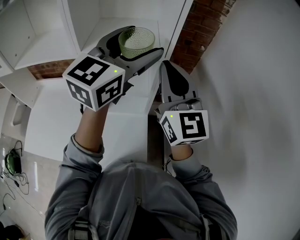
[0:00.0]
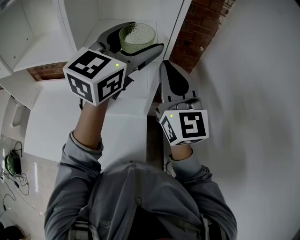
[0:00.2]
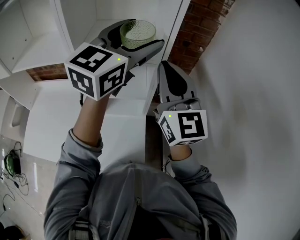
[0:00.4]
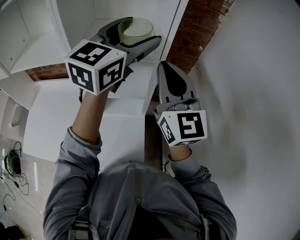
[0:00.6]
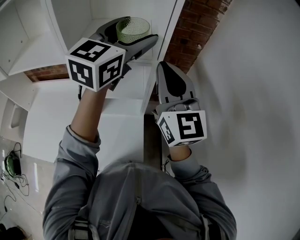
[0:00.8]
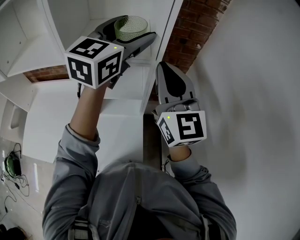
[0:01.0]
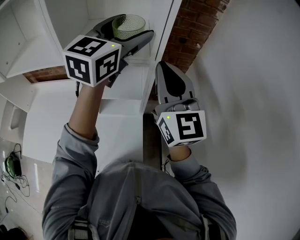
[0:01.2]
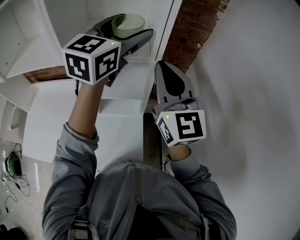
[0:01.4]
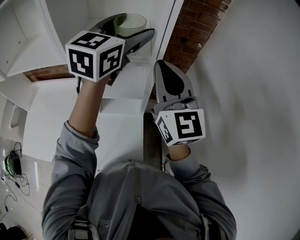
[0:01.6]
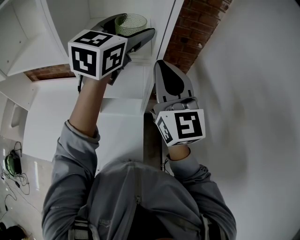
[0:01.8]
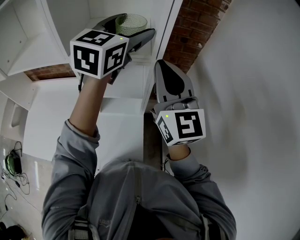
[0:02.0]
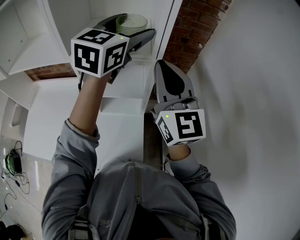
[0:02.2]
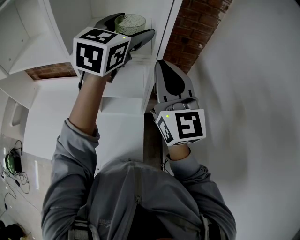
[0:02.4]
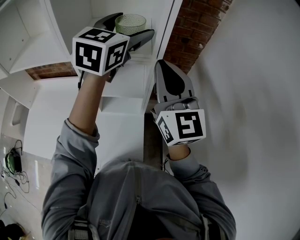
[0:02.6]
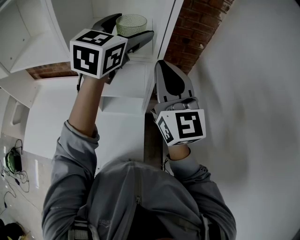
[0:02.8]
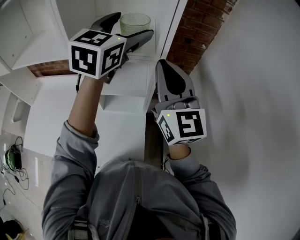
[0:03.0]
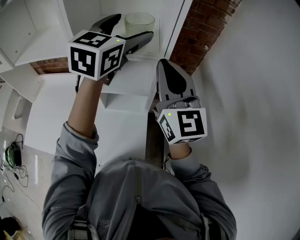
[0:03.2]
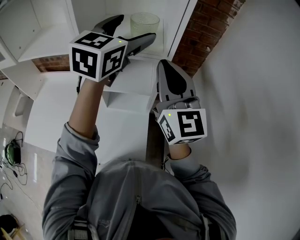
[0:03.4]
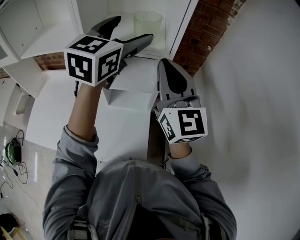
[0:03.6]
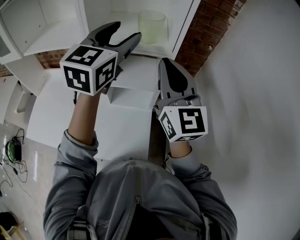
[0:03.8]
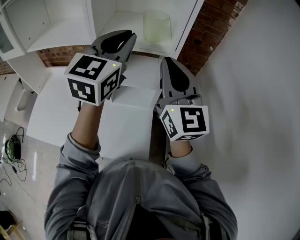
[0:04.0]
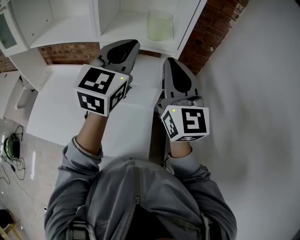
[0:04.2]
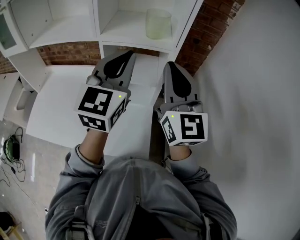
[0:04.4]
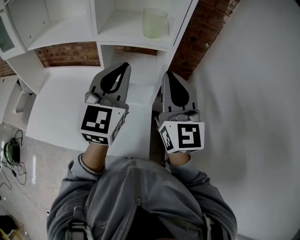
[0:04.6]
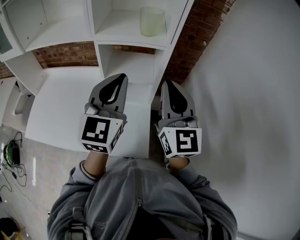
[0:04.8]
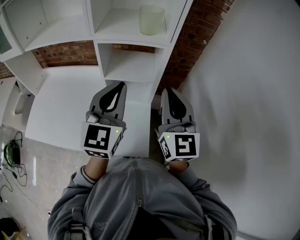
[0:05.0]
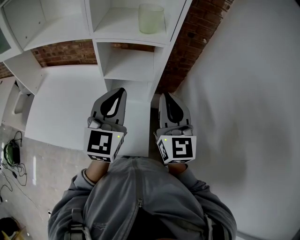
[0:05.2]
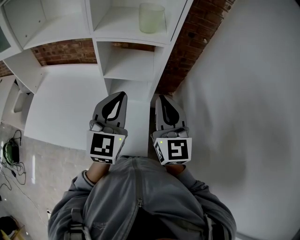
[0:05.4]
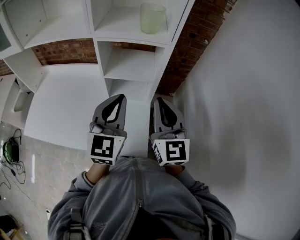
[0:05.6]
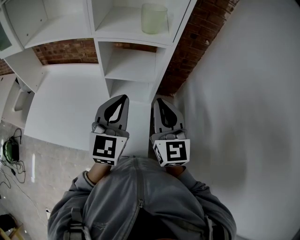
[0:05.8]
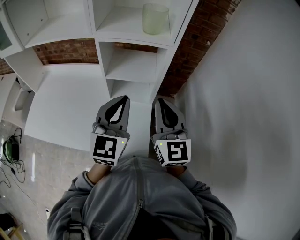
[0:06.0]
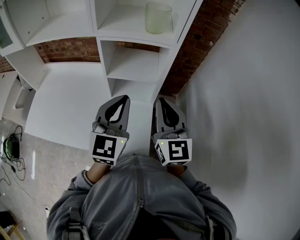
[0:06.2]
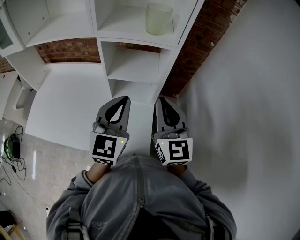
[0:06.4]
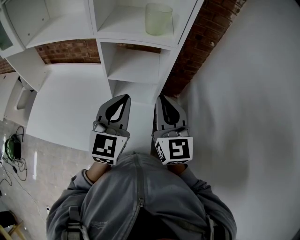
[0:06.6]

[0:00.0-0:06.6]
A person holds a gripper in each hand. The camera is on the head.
0:00.0 to 0:01.6: The left gripper shifts some 10 cm forward.
0:01.6 to 0:03.2: The grippers move only a little.
0:03.2 to 0:05.0: The right gripper is displaced backward and downward by approximately 15 cm; the left gripper travels backward and downward by roughly 25 cm, and closes its fingers.
0:05.0 to 0:06.6: The left gripper is displaced downward by roughly 5 cm. Meanwhile the right gripper moves about 5 cm.

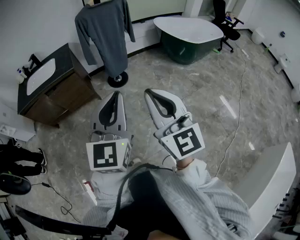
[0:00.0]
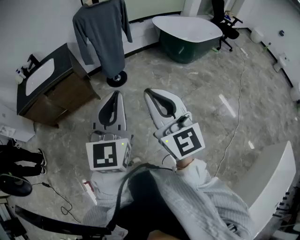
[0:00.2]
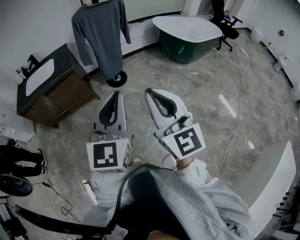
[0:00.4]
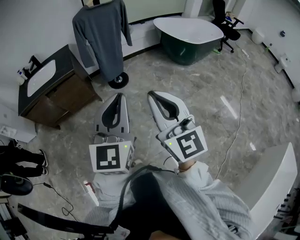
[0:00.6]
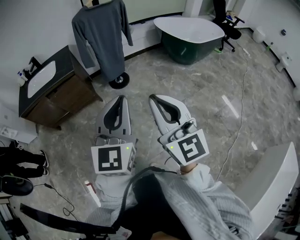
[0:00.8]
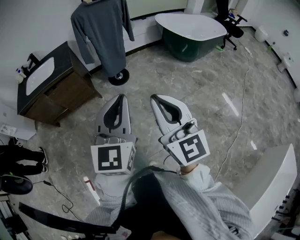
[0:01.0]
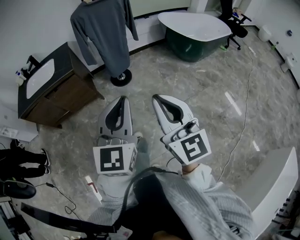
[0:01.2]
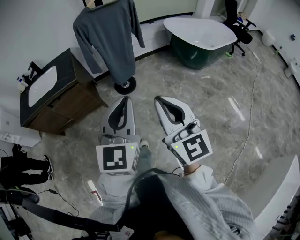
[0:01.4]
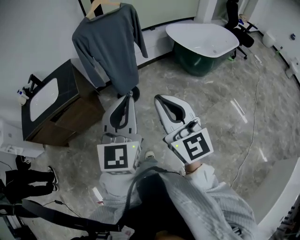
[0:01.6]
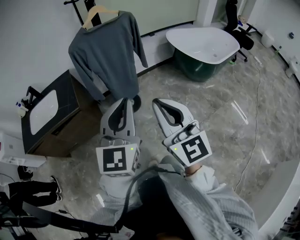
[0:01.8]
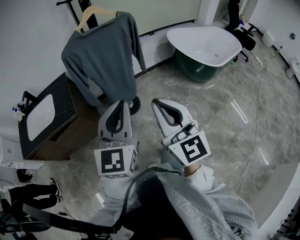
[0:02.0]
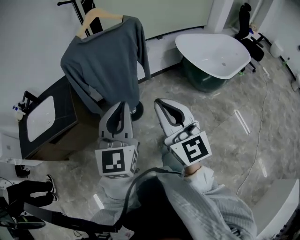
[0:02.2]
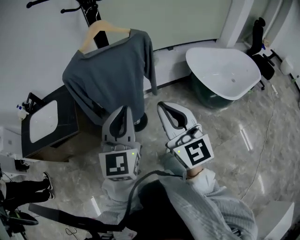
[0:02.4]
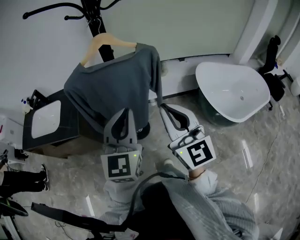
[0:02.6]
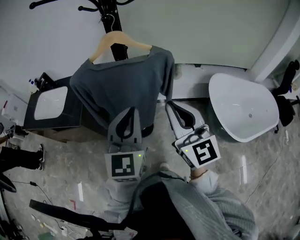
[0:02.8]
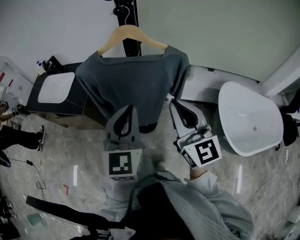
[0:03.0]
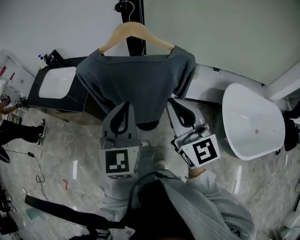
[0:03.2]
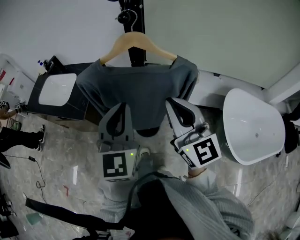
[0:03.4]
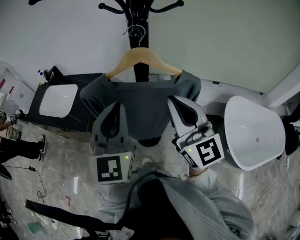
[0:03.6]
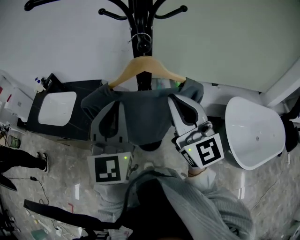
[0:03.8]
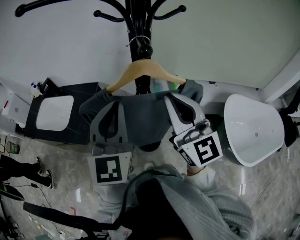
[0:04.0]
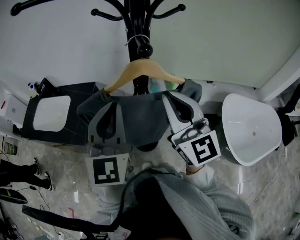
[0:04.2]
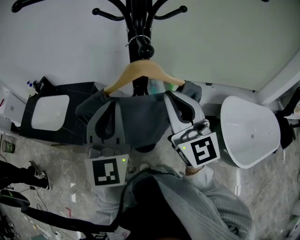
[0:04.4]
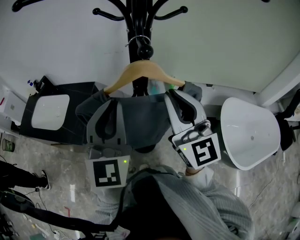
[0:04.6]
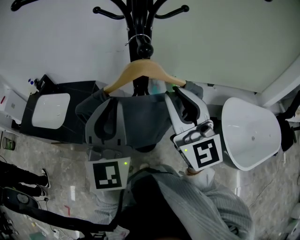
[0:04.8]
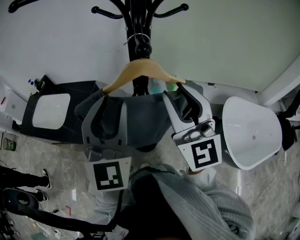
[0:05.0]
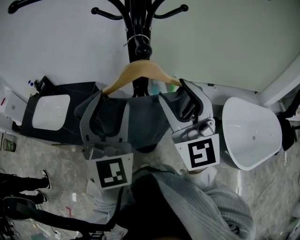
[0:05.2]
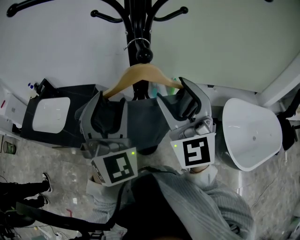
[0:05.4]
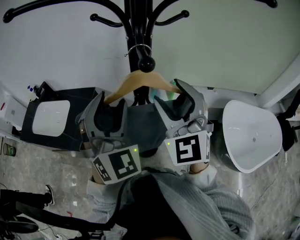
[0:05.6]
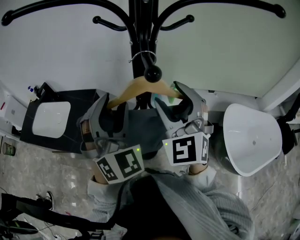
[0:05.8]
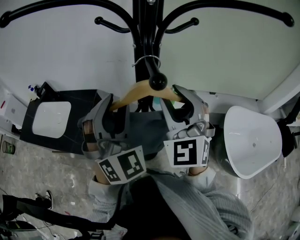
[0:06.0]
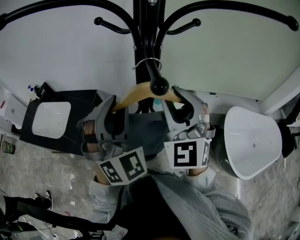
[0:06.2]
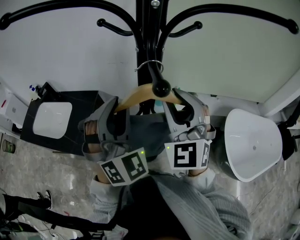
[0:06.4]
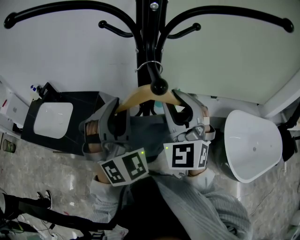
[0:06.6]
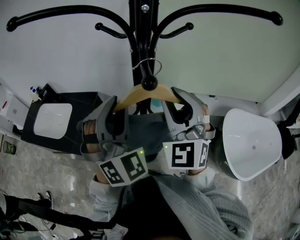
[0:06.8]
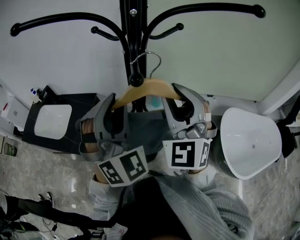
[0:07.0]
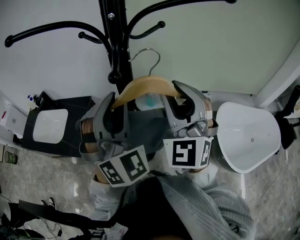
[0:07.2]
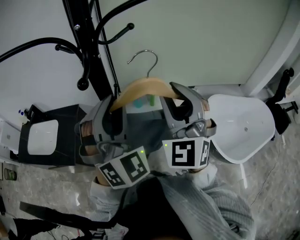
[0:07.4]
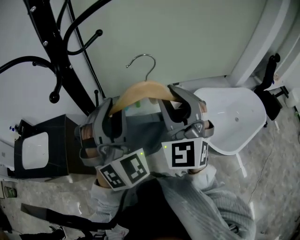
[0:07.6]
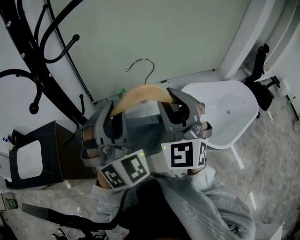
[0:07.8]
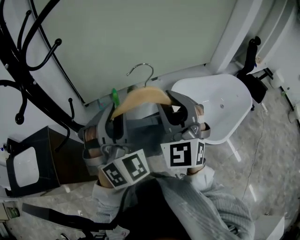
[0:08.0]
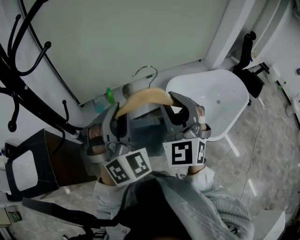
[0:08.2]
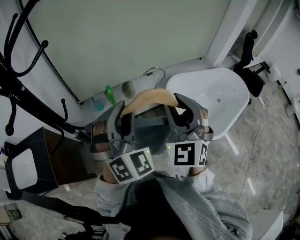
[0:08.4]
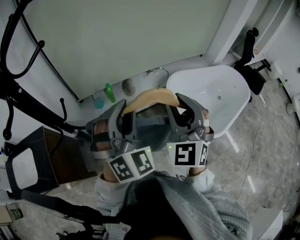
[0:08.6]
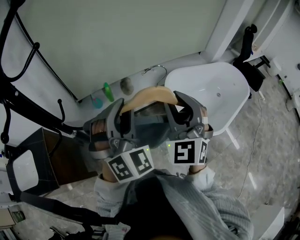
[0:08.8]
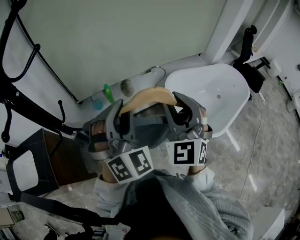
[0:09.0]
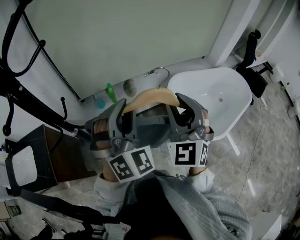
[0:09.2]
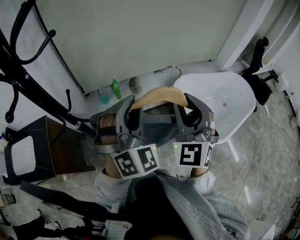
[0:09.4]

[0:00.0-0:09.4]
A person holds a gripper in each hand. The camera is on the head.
0:00.0 to 0:01.6: Both grippers move forward, approximately 30 cm.
0:01.6 to 0:03.2: The two grippers travel together, about 60 cm. The right gripper turns by about 30 degrees, while the left gripper changes its angle by roughly 40 degrees.
0:03.2 to 0:04.8: The grippers both shift forward and upward by some 15 cm.
0:04.8 to 0:06.2: The two grippers go about 10 cm forward. The right gripper rotates approximately 30 degrees, and opens, then closes again; the left gripper swivels approximately 40 degrees, and opens its fingers.
0:06.2 to 0:07.8: The right gripper is displaced to the right and backward by roughly 25 cm, and rotates roughly 20 degrees. Meanwhile the left gripper moves to the right, some 25 cm.
0:07.8 to 0:09.4: The two grippers go approximately 15 cm to the right and downward.

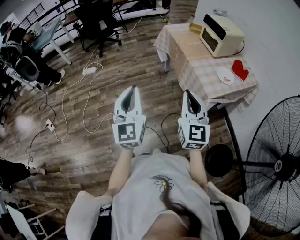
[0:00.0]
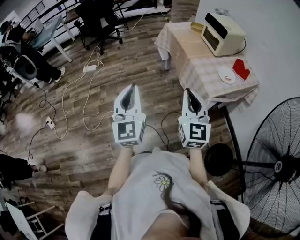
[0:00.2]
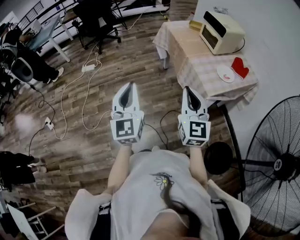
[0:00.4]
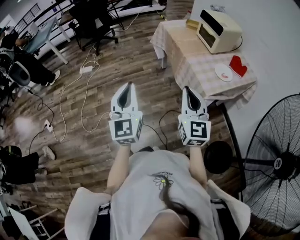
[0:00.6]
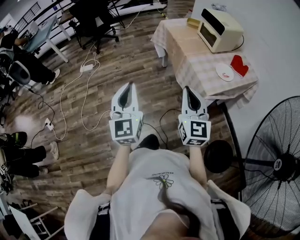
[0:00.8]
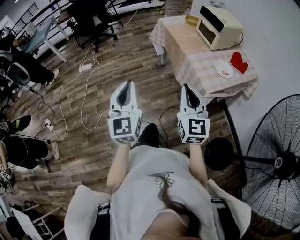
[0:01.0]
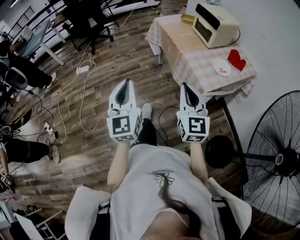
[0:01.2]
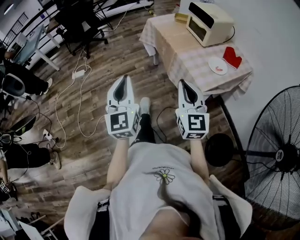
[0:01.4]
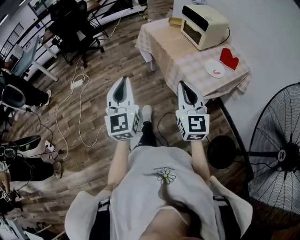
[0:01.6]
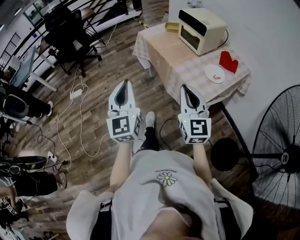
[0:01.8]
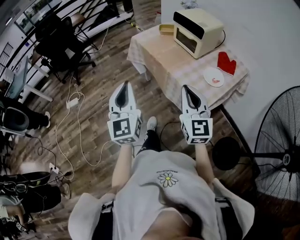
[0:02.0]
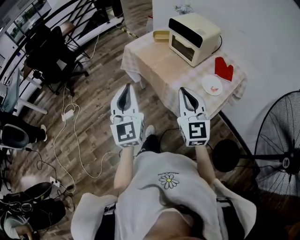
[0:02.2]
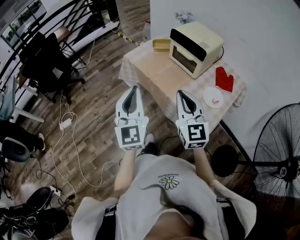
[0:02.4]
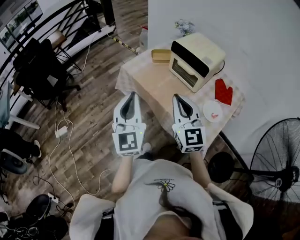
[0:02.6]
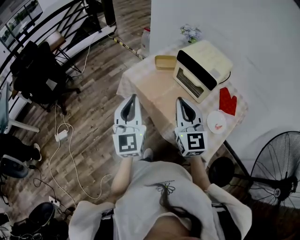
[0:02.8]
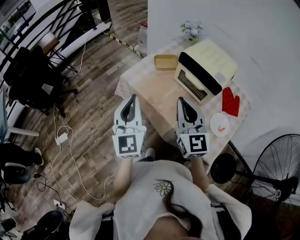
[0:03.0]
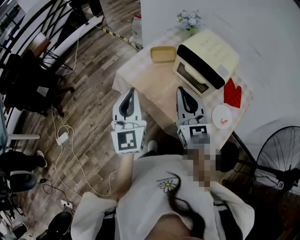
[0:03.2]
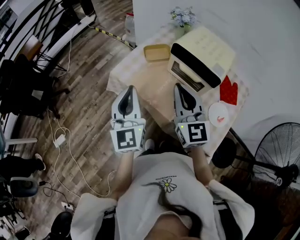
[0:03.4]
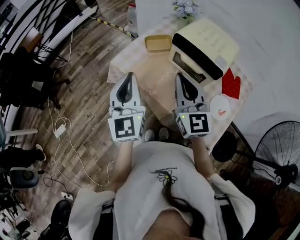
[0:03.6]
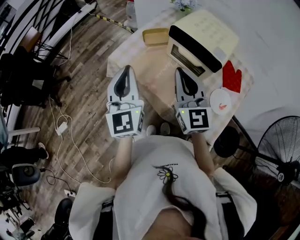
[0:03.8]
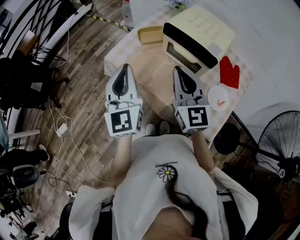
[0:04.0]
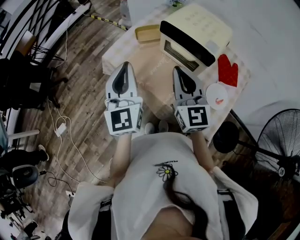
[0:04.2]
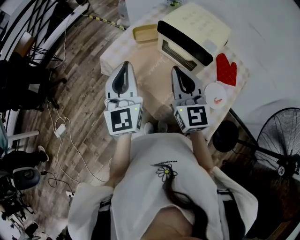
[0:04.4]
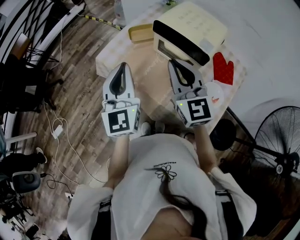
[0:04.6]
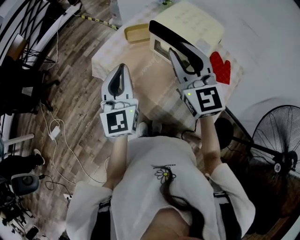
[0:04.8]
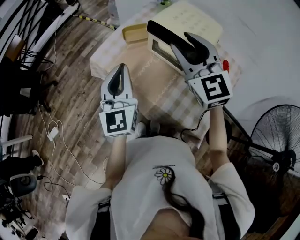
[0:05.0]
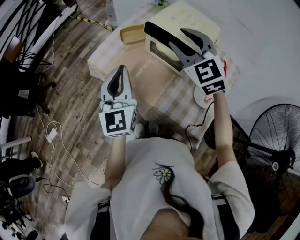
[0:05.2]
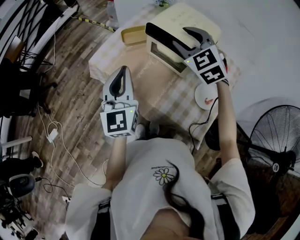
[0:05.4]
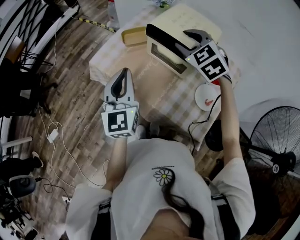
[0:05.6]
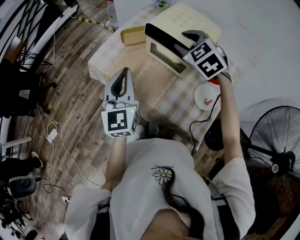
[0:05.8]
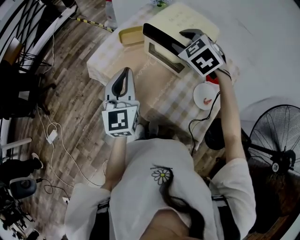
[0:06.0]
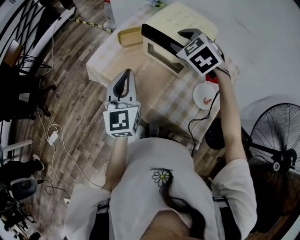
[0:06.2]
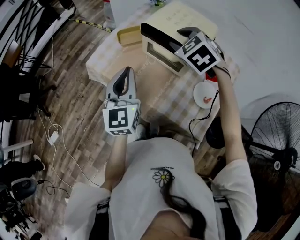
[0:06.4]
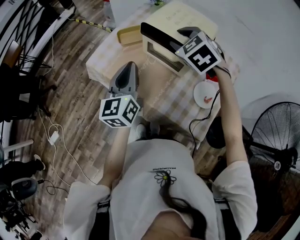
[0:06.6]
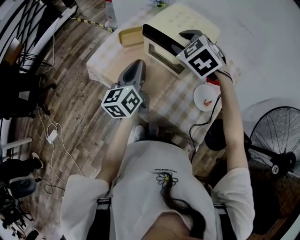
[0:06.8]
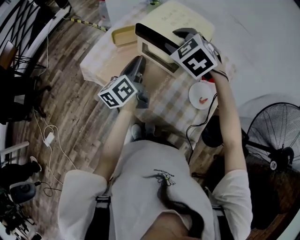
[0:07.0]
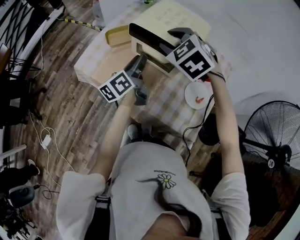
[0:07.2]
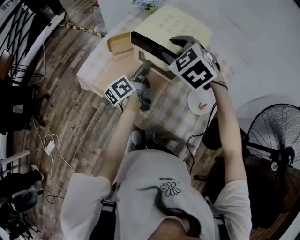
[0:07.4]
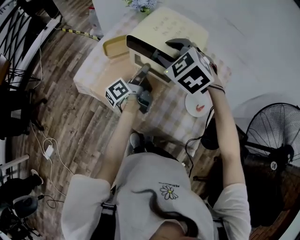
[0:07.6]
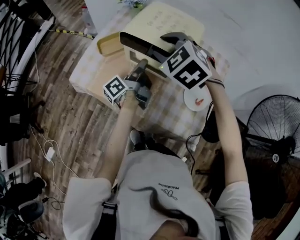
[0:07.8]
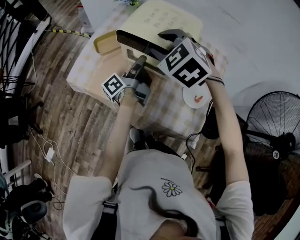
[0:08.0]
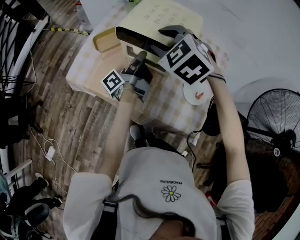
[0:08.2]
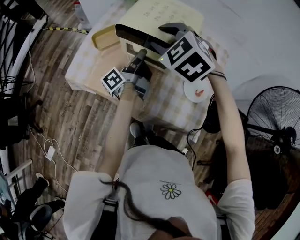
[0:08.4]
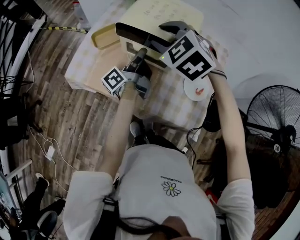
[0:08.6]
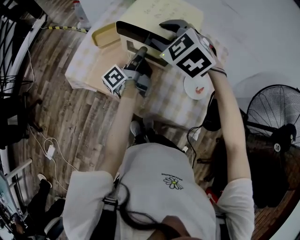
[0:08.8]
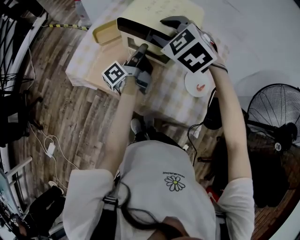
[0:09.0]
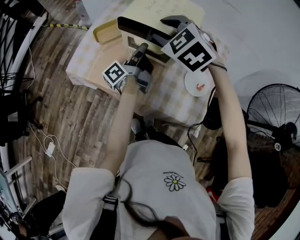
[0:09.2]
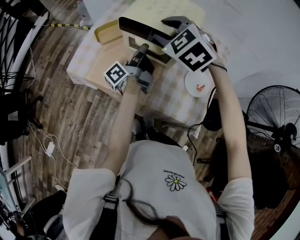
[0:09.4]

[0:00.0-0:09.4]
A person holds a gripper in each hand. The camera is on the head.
0:00.0 to 0:01.6: The grippers both shift forward by roughly 10 cm.
0:01.6 to 0:03.2: The two grippers travel together, forward, about 50 cm. The left gripper turns by approximately 20 degrees.
0:03.2 to 0:04.8: Both grippers travel together to the right, about 10 cm.
0:04.8 to 0:06.2: The left gripper changes place by approximately 5 cm. The right gripper travels forward, downward and to the right by approximately 15 cm, tilts its fingers approximately 40 degrees downward, and opens.
0:06.2 to 0:07.8: The left gripper is displaced forward, downward and to the right by some 20 cm, rolls counterclockwise, seen from behind, by approximately 90 degrees, and opens up.
0:07.8 to 0:09.4: There are only small adjustments of the grippers.
